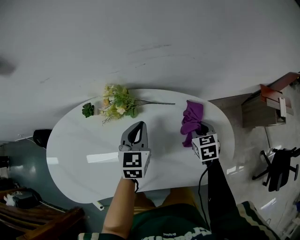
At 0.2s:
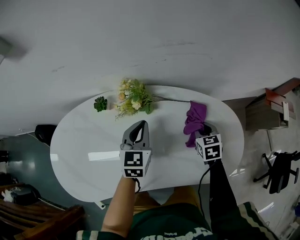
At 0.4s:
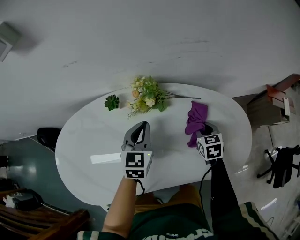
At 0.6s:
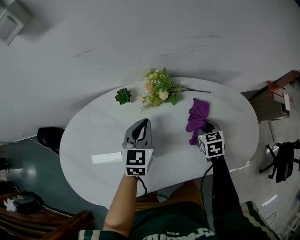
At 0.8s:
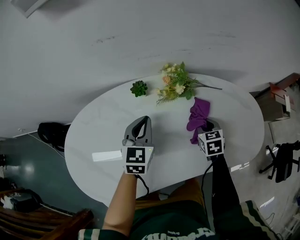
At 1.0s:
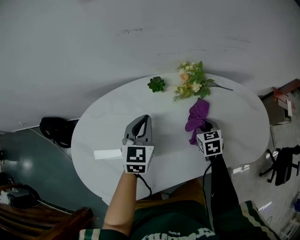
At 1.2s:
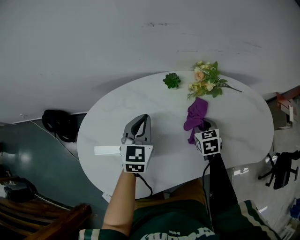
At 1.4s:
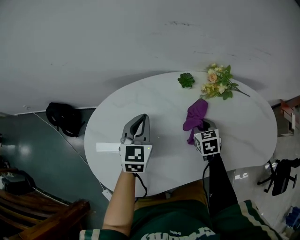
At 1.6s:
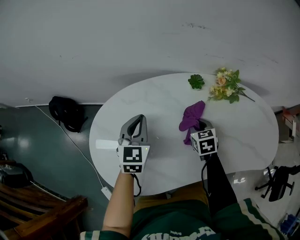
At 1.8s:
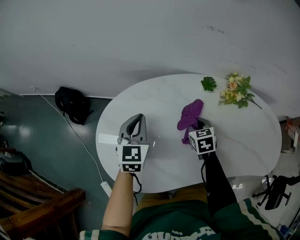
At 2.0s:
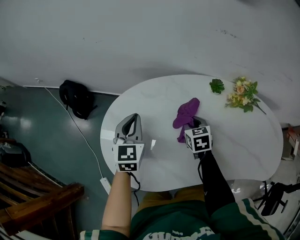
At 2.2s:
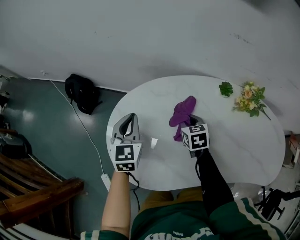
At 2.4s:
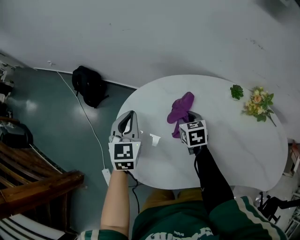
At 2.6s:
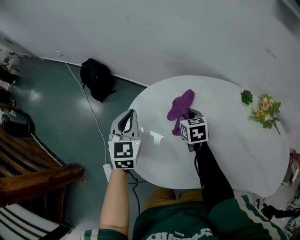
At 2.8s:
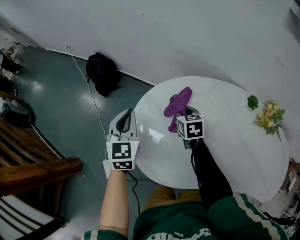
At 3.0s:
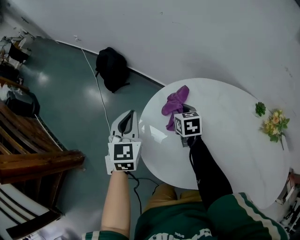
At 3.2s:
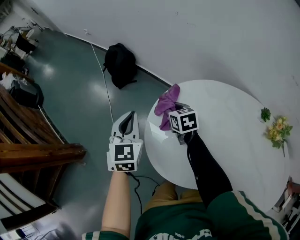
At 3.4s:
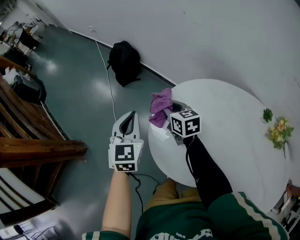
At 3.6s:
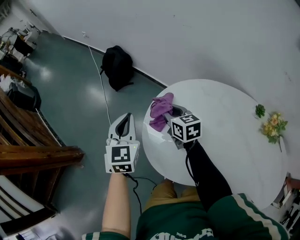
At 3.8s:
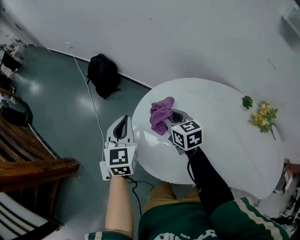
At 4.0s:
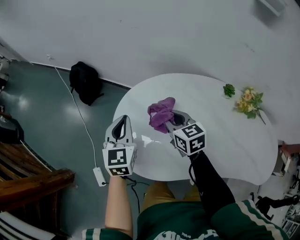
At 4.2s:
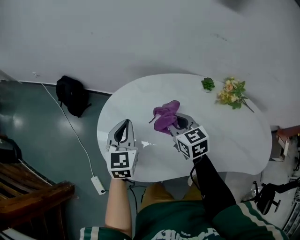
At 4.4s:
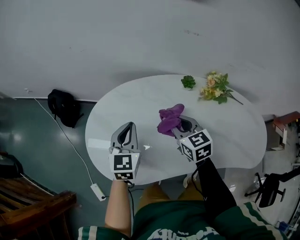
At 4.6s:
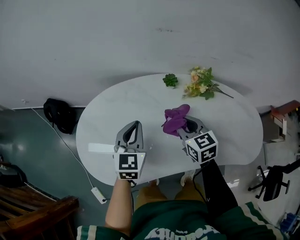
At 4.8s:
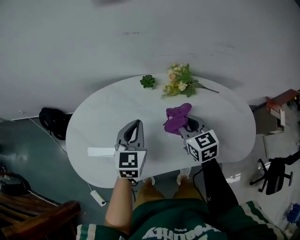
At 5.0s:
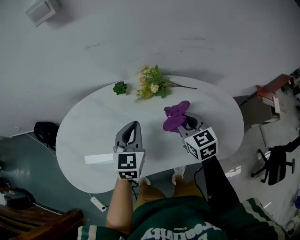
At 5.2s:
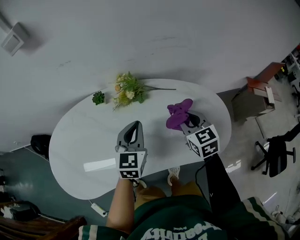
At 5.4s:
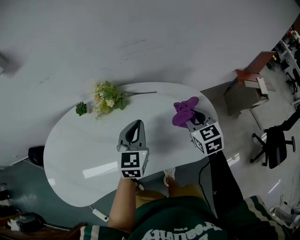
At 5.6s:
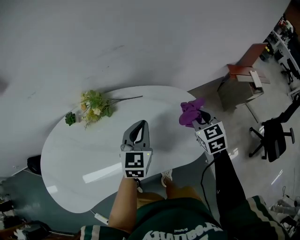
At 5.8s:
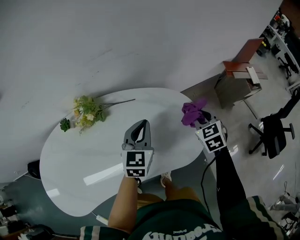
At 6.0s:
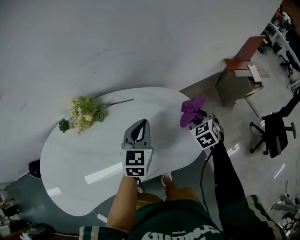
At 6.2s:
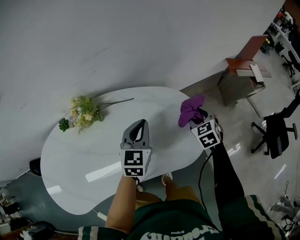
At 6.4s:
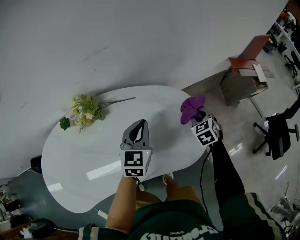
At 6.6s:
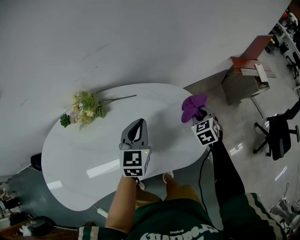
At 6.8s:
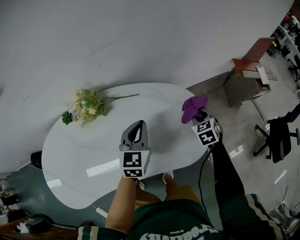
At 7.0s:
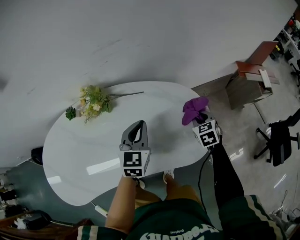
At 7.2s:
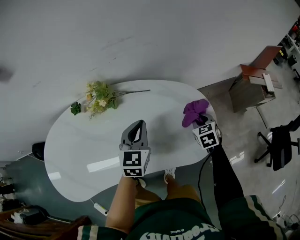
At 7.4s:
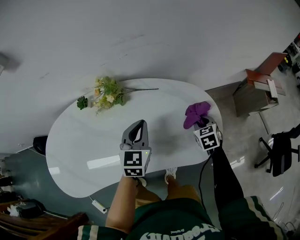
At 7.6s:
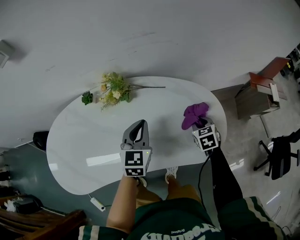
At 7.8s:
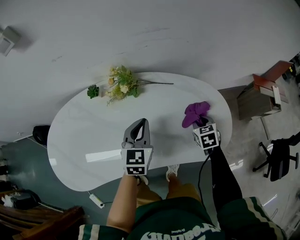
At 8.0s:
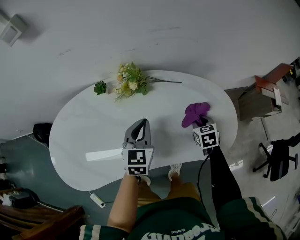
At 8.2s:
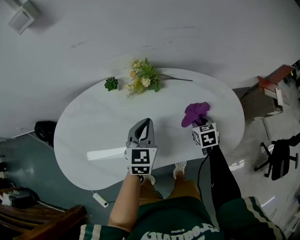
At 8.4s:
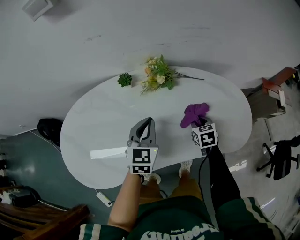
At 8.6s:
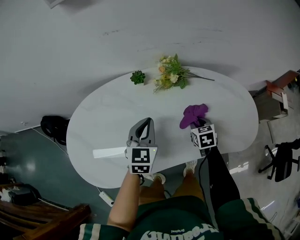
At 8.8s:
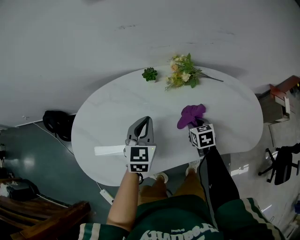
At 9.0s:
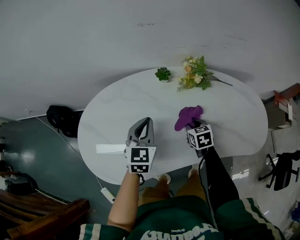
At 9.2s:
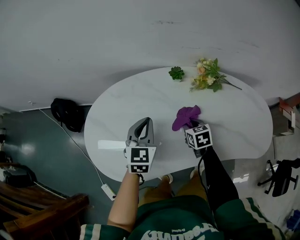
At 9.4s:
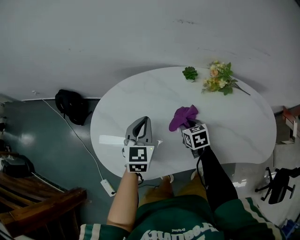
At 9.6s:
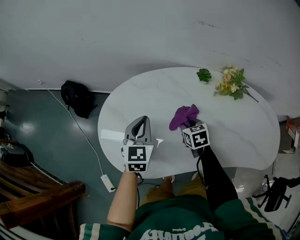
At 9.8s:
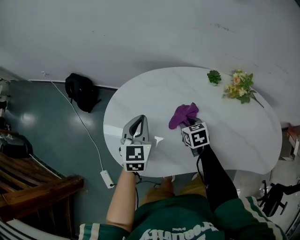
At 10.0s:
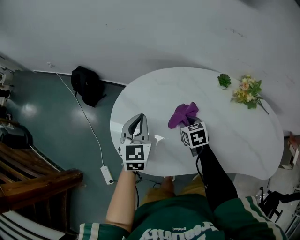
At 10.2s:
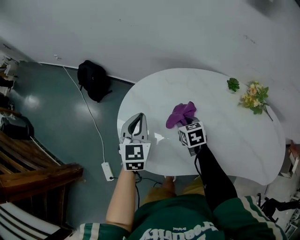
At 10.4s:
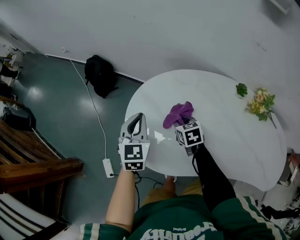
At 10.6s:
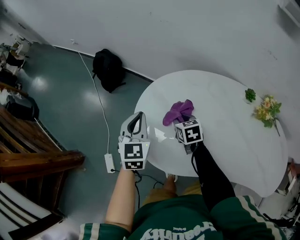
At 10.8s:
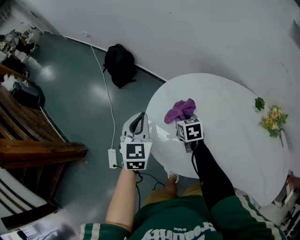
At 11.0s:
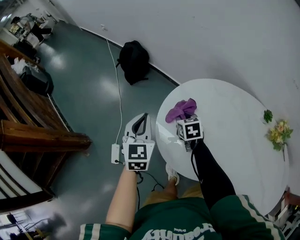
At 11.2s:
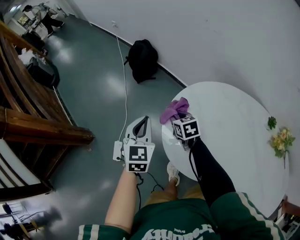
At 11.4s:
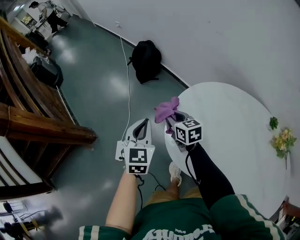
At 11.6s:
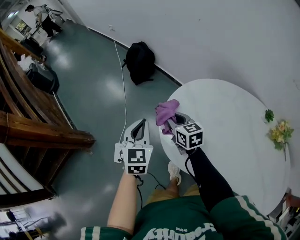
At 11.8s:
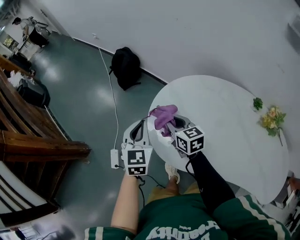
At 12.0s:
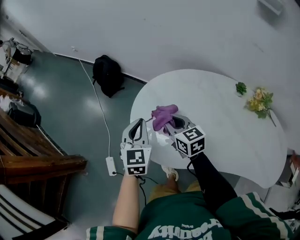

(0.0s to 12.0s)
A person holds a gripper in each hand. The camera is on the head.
0.0s - 1.6s: Both grippers are carried to the left, approximately 50 cm.
1.6s - 3.0s: The right gripper moves about 40 cm, and rotates some 30 degrees, while the left gripper changes place by some 35 cm, and changes its angle by some 30 degrees.
3.0s - 4.4s: The left gripper shifts by about 30 cm, and swivels roughly 30 degrees. Meanwhile the right gripper moves about 35 cm.
4.4s - 6.0s: The two grippers travel together, approximately 70 cm. The right gripper rotates some 40 degrees, and opens its fingers. Meanwhile the left gripper changes its angle by roughly 40 degrees.
6.0s - 7.6s: The right gripper moves to the left, about 10 cm, and closes up, while the left gripper heads to the left and backward, covering about 15 cm.
7.6s - 9.0s: Both grippers travel together to the left, roughly 40 cm.
9.0s - 10.4s: The left gripper shifts by approximately 35 cm, and swivels approximately 30 degrees; the right gripper moves approximately 40 cm, and rotates approximately 30 degrees.
10.4s - 12.0s: The left gripper moves roughly 20 cm to the left and comes back. Meanwhile the right gripper heads upward and to the left, covering approximately 15 cm, and swivels some 30 degrees.

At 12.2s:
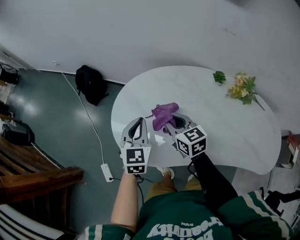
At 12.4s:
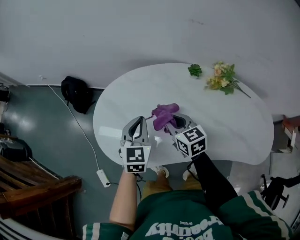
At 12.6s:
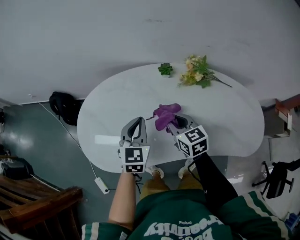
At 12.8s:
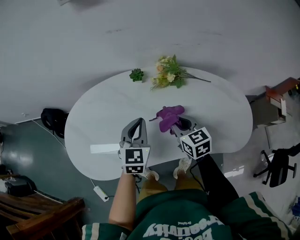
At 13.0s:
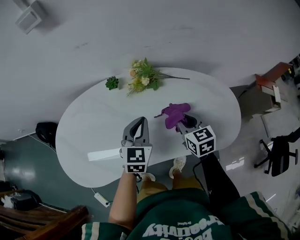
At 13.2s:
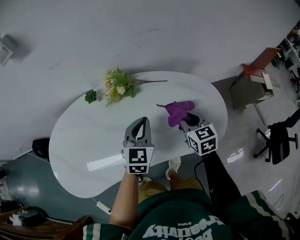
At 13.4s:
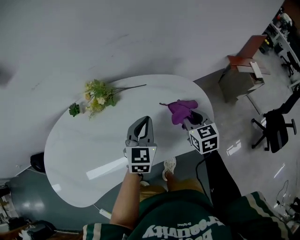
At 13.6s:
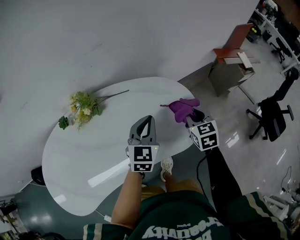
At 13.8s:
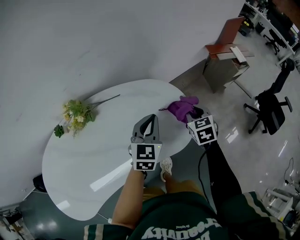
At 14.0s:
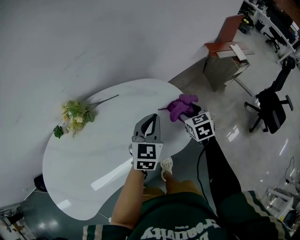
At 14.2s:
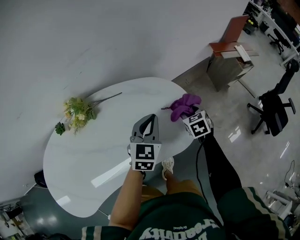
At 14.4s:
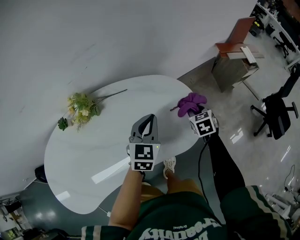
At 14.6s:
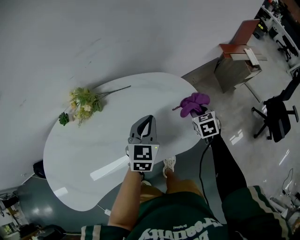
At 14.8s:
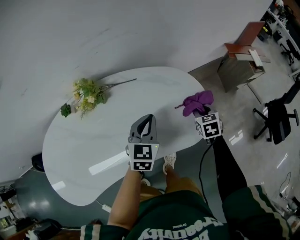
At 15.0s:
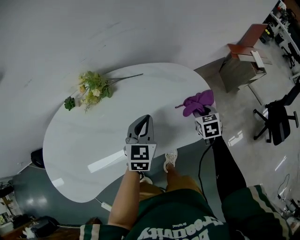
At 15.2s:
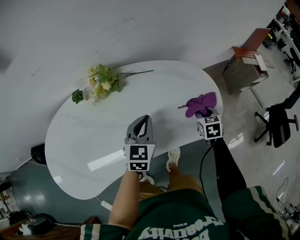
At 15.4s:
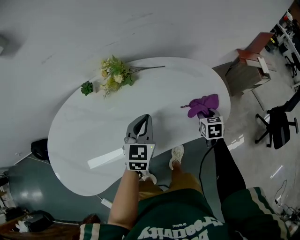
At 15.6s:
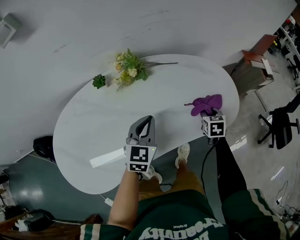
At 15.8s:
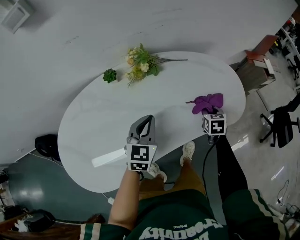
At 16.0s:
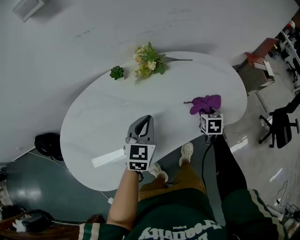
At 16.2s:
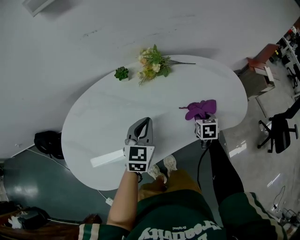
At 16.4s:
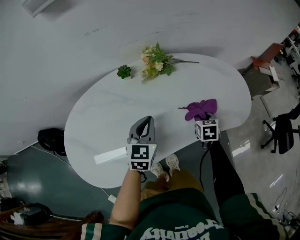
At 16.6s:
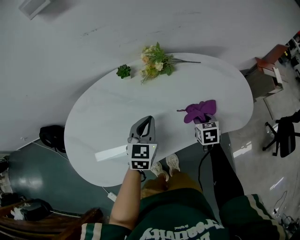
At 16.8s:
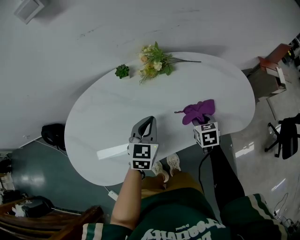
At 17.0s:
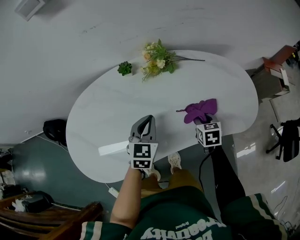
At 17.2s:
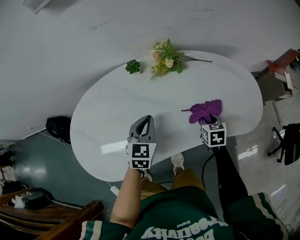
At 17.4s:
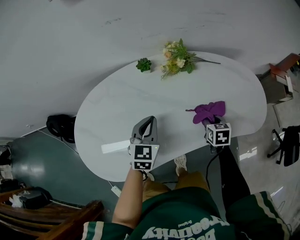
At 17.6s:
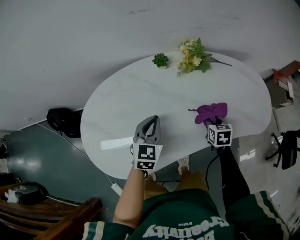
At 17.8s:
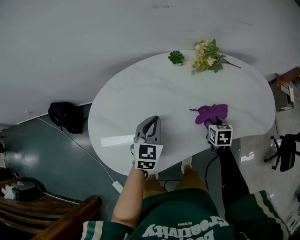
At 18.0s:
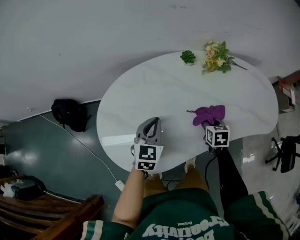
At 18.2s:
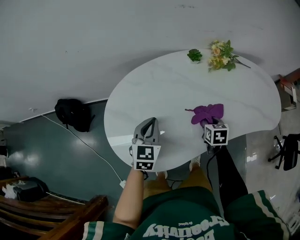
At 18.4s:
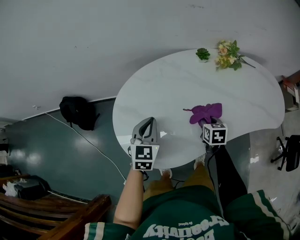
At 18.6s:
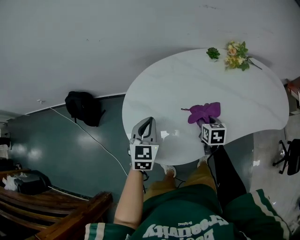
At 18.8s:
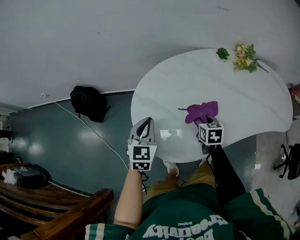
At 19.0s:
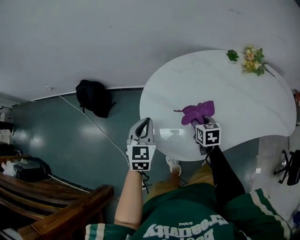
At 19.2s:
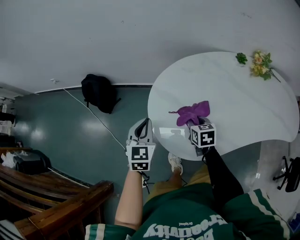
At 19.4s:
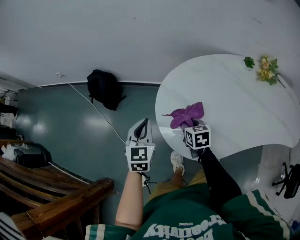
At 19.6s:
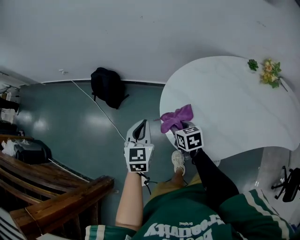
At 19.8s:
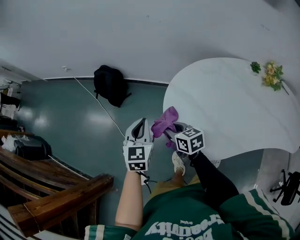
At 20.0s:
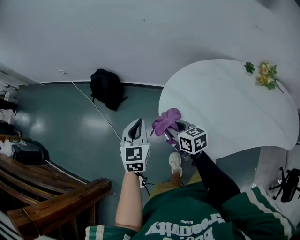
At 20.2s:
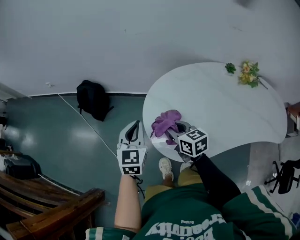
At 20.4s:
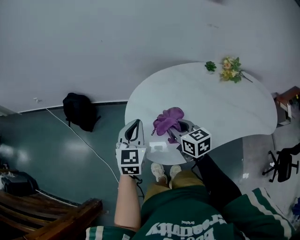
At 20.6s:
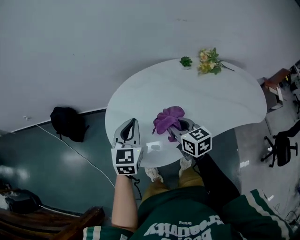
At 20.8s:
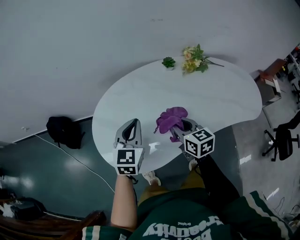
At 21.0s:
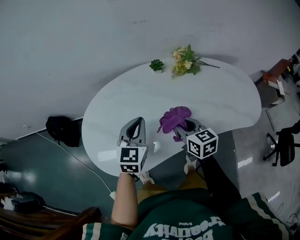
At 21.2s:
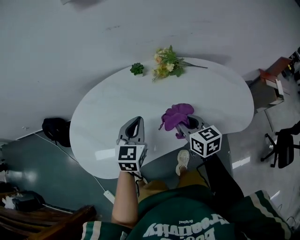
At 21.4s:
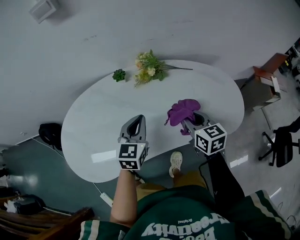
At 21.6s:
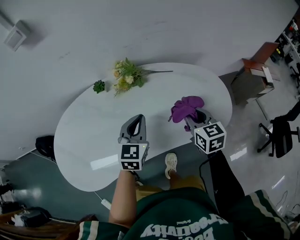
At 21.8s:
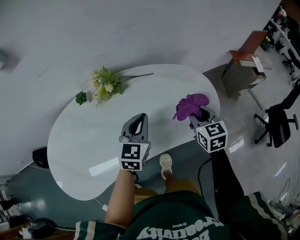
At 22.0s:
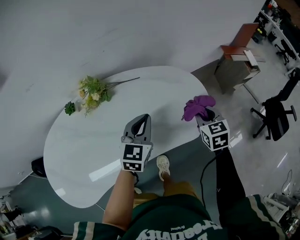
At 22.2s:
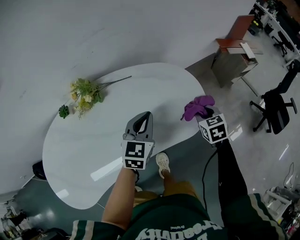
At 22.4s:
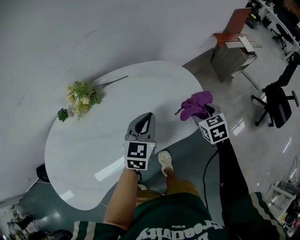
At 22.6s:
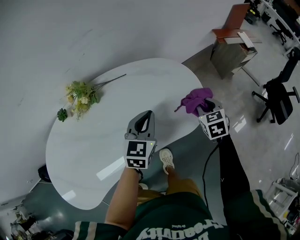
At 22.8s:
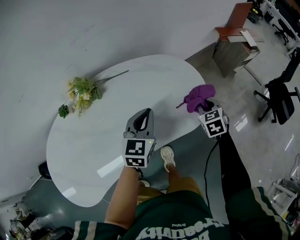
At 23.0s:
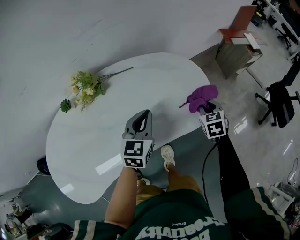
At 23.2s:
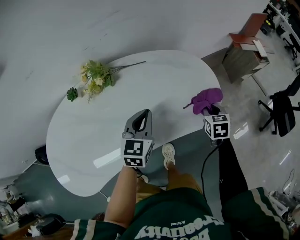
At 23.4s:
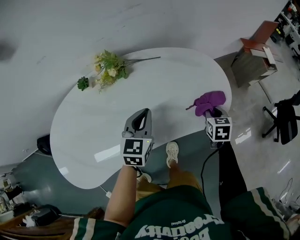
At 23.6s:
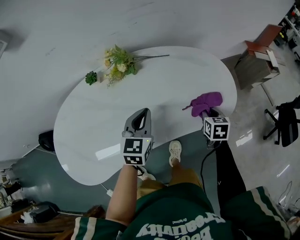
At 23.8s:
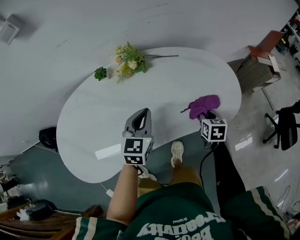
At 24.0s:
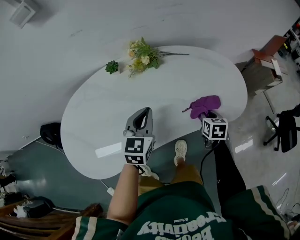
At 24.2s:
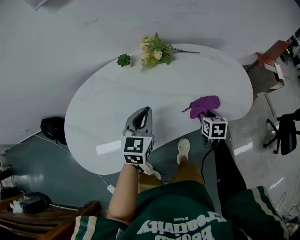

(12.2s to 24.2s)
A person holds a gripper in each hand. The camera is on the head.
12.2s - 13.8s: The two grippers travel together, some 90 cm. The left gripper swivels approximately 60 degrees, while the right gripper rotates about 70 degrees.
13.8s - 15.2s: The right gripper goes approximately 10 cm to the left, downward and backward, and opens, then closes again. Meanwhile the left gripper travels to the left and backward by roughly 20 cm.
15.2s - 16.6s: The two grippers go approximately 25 cm to the left and backward.
16.6s - 18.2s: Both grippers move to the left, some 30 cm.
18.2s - 19.8s: The left gripper moves about 35 cm, and swivels roughly 30 degrees. The right gripper moves about 50 cm, and rotates about 50 degrees.
19.8s - 21.2s: The pair of grippers is taken some 60 cm. The left gripper swivels roughly 30 degrees. The right gripper swivels approximately 30 degrees.
21.2s - 22.6s: The pair of grippers is taken some 50 cm. The right gripper swivels roughly 40 degrees, and opens and closes again; the left gripper rotates roughly 30 degrees.
22.6s - 24.2s: The two grippers go some 35 cm to the left and backward. The left gripper changes its angle by some 20 degrees.
